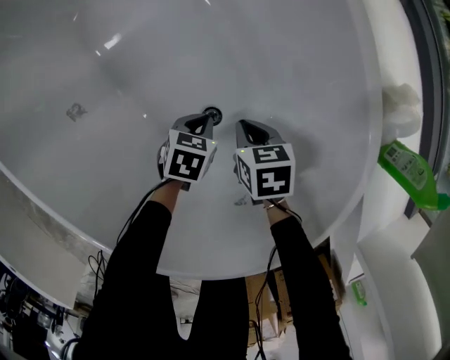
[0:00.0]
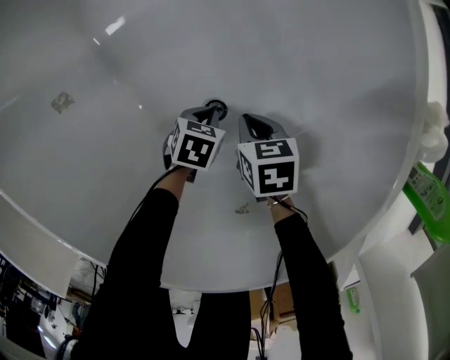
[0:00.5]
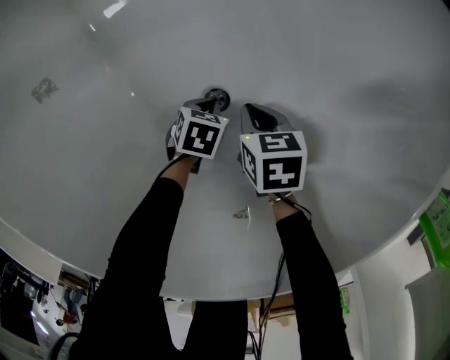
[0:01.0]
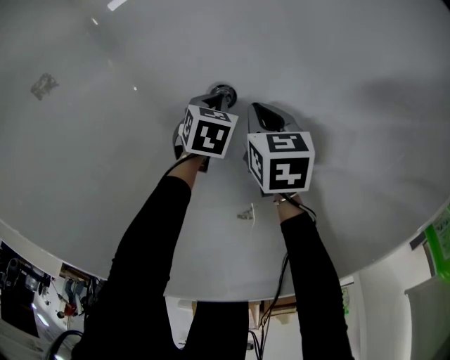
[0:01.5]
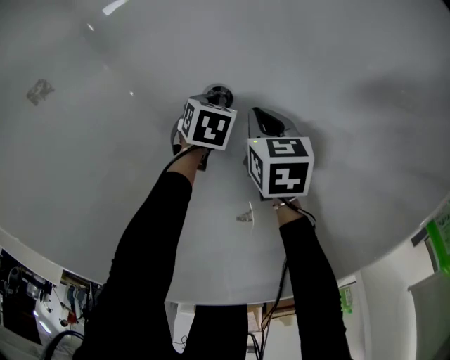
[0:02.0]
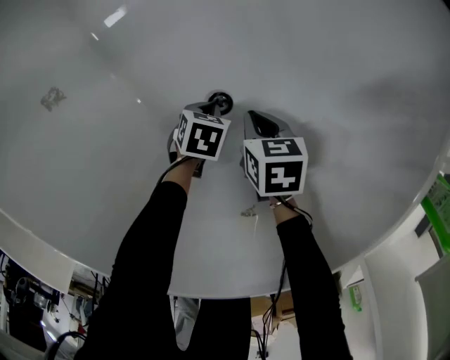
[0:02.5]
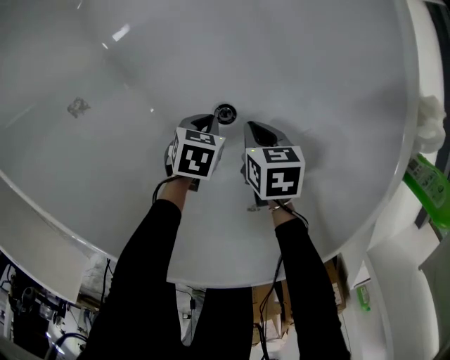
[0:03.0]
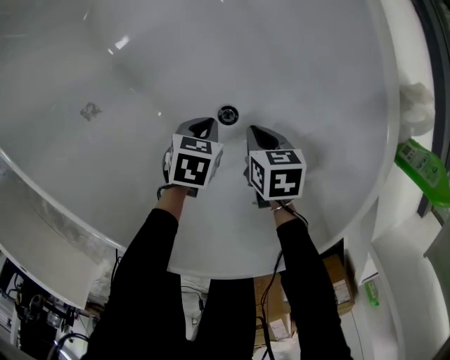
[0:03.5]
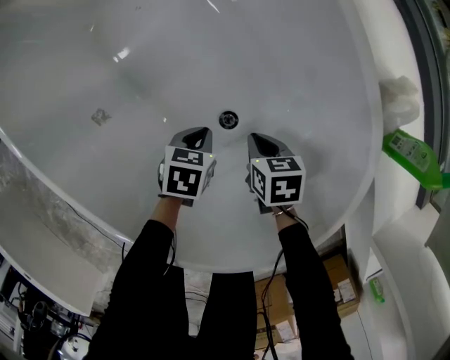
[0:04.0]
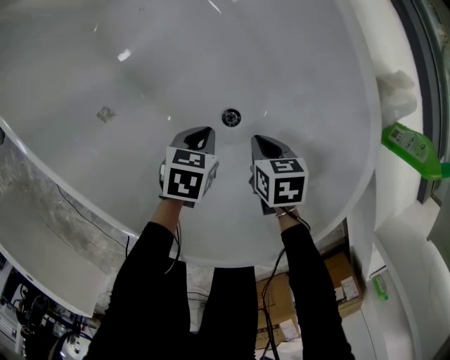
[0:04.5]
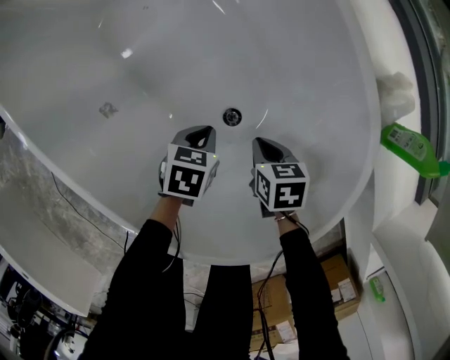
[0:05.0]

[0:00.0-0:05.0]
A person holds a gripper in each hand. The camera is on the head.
0:00.0 to 0:02.5: Both grippers move downward, about 10 cm.
0:02.5 to 0:05.0: The right gripper moves upward, roughly 15 cm, while the left gripper goes roughly 20 cm upward.

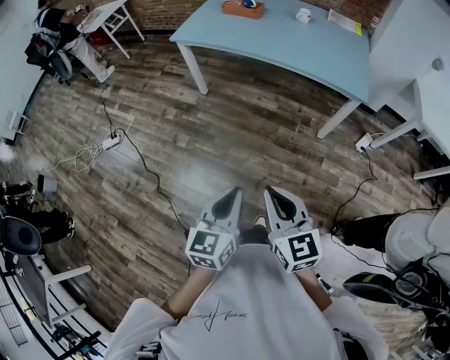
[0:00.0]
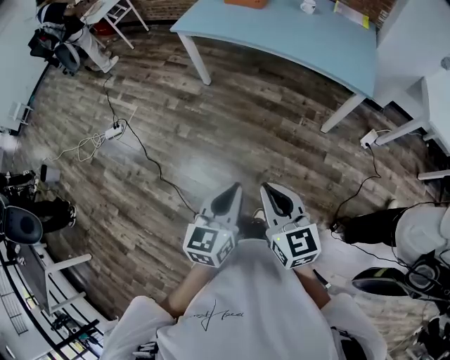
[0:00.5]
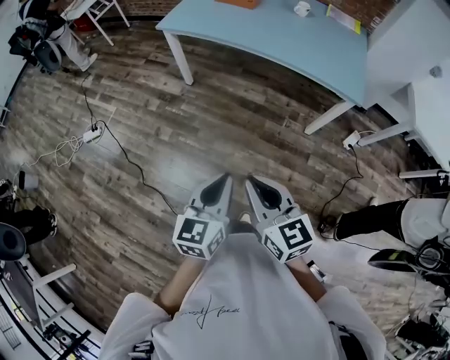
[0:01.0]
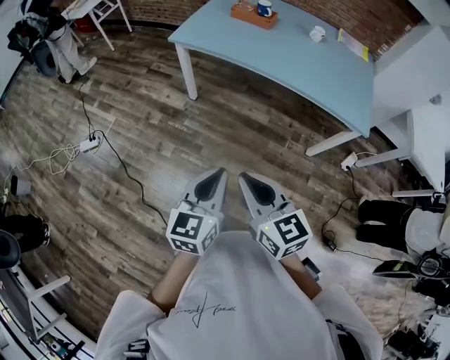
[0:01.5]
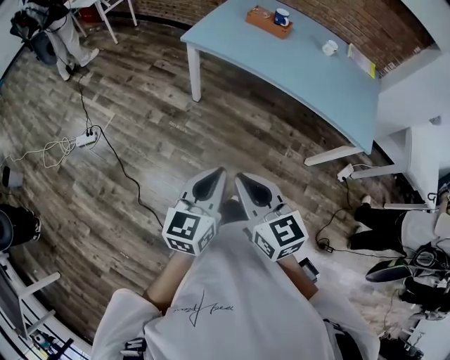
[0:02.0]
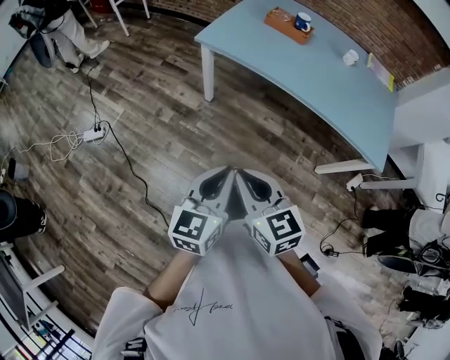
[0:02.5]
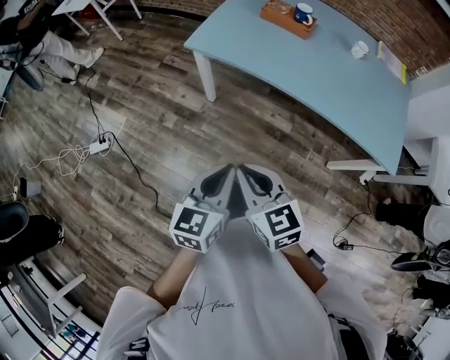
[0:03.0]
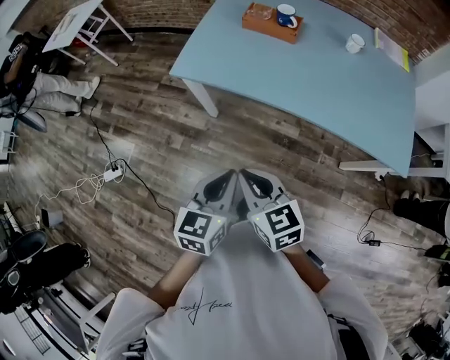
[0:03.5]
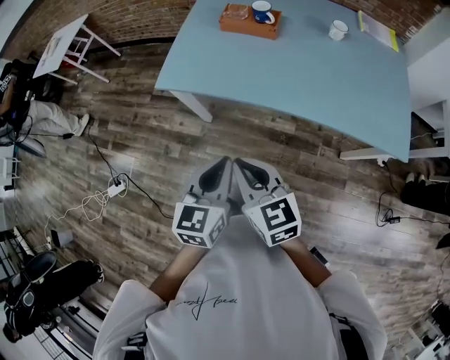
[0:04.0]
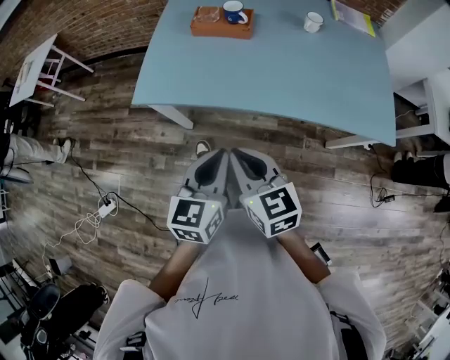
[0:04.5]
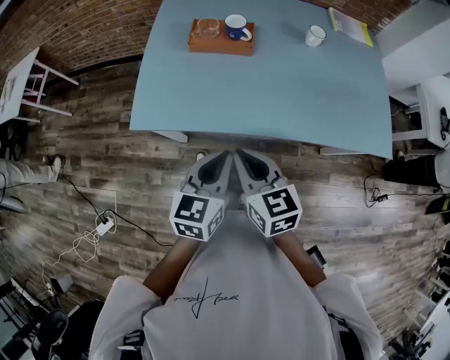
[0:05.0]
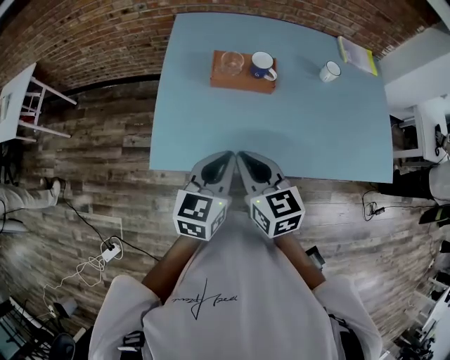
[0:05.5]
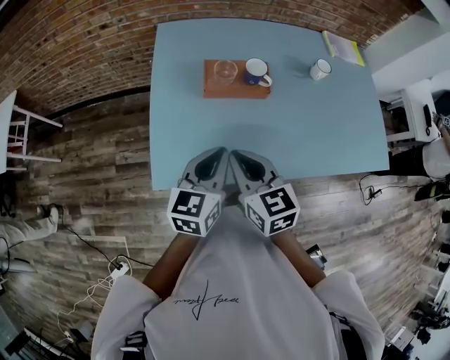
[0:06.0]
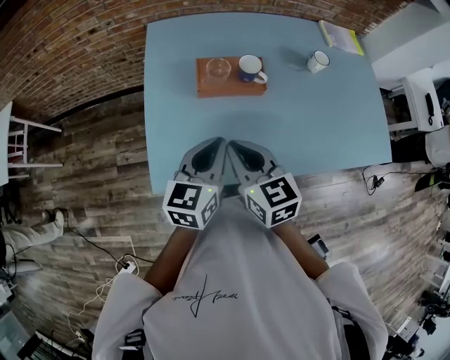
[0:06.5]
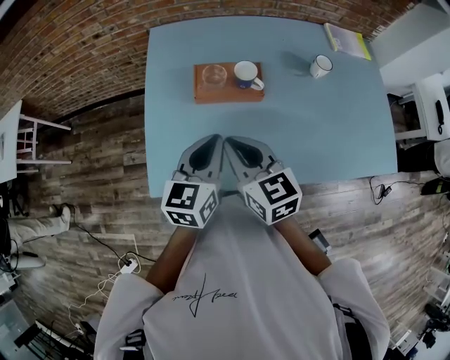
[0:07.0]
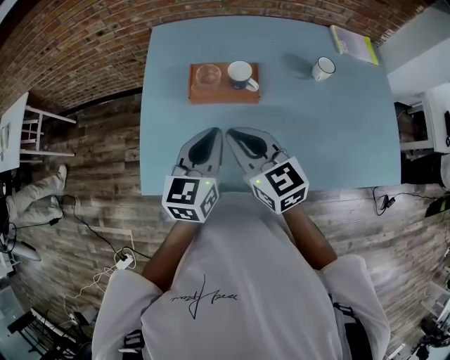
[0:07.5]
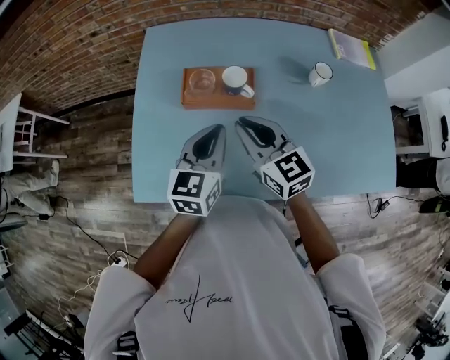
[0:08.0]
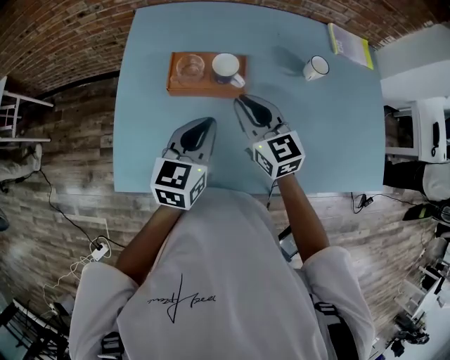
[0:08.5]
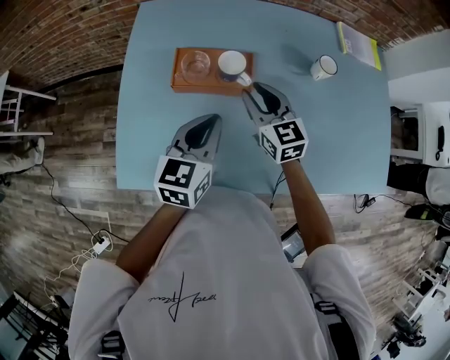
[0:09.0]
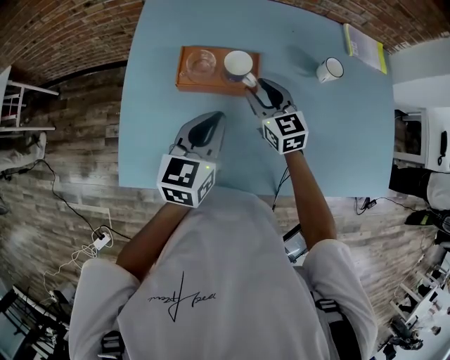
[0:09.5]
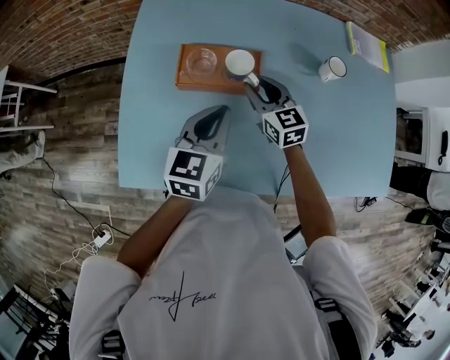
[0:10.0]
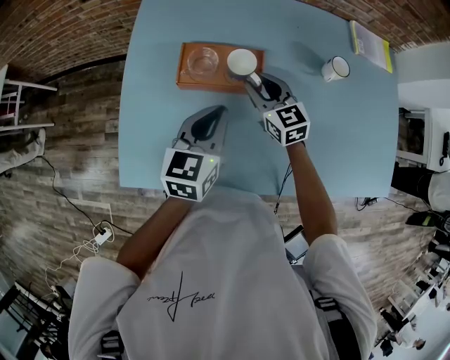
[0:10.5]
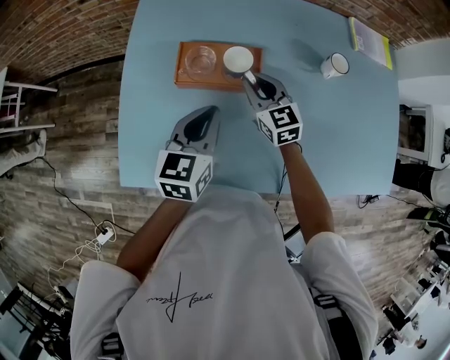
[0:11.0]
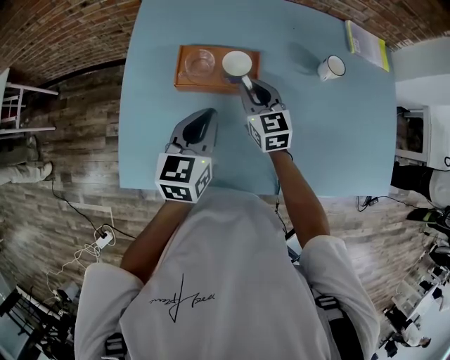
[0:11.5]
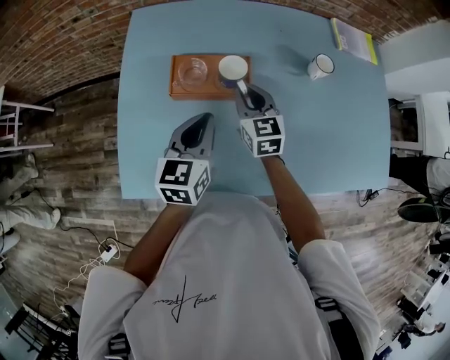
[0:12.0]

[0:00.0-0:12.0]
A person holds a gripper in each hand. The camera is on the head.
0:00.0 to 0:02.0: The two grippers go about 25 cm forward and to the left.
0:02.0 to 0:04.0: Both grippers move forward, roughly 30 cm.
0:04.0 to 0:06.0: The right gripper ends up roughly 35 cm from where it was, and turns by about 20 degrees. Meanwhile the left gripper changes place by some 35 cm, and changes its angle by some 20 degrees.
0:06.0 to 0:08.0: The two grippers go roughly 15 cm forward and to the right.
0:08.0 to 0:10.0: The right gripper is displaced forward and downward by some 15 cm, and opens its fingers.
0:10.0 to 0:12.0: The grippers move only a little.

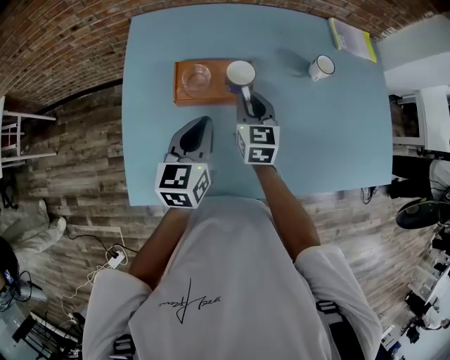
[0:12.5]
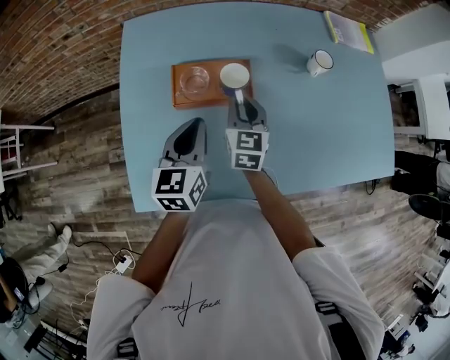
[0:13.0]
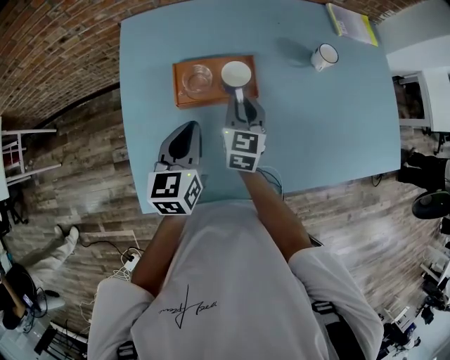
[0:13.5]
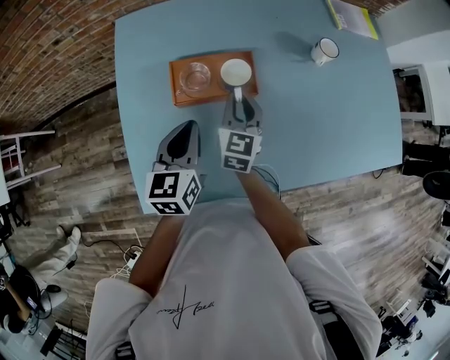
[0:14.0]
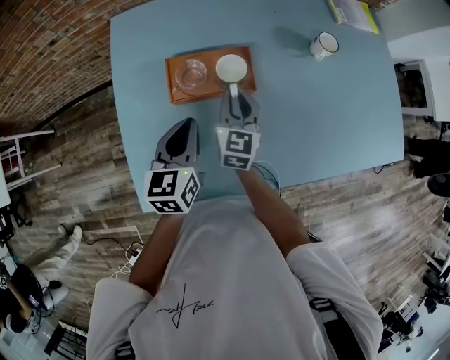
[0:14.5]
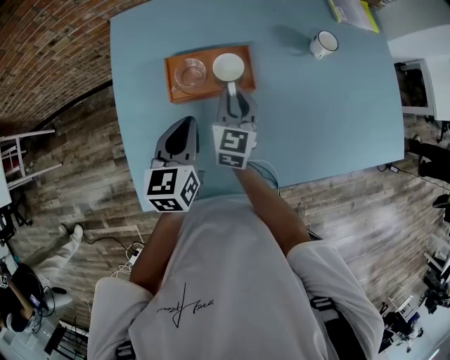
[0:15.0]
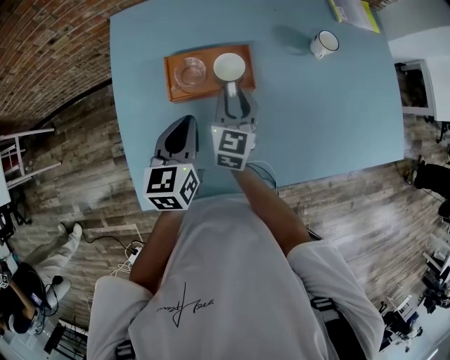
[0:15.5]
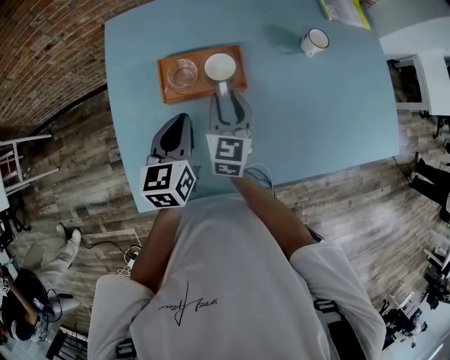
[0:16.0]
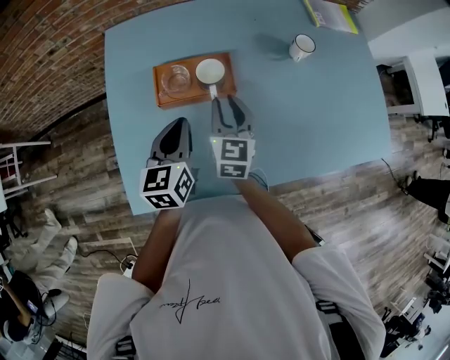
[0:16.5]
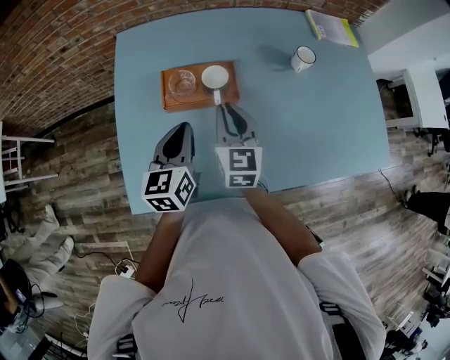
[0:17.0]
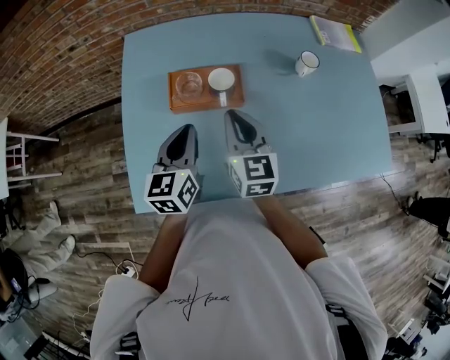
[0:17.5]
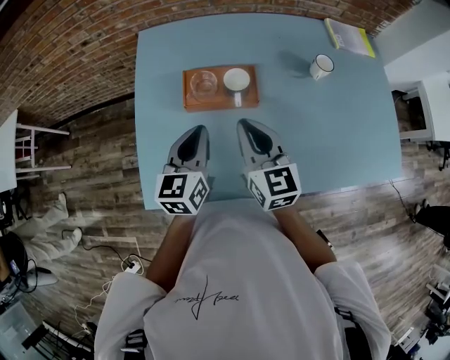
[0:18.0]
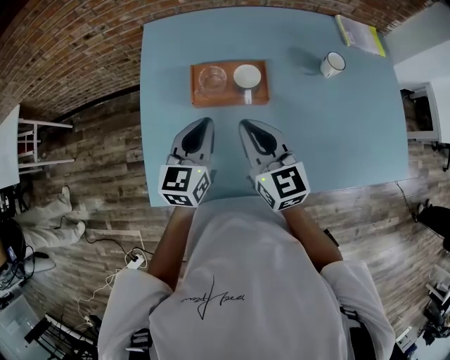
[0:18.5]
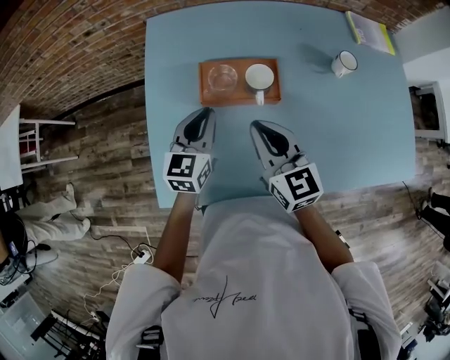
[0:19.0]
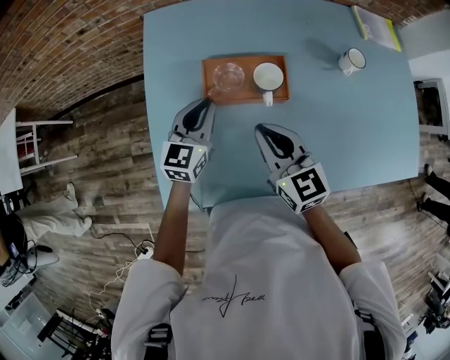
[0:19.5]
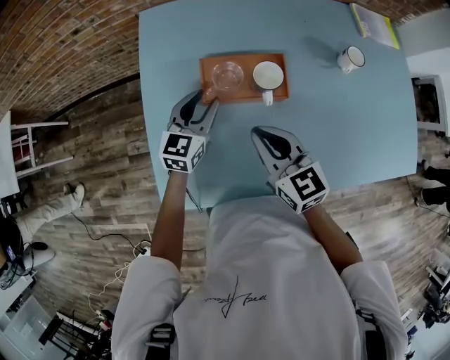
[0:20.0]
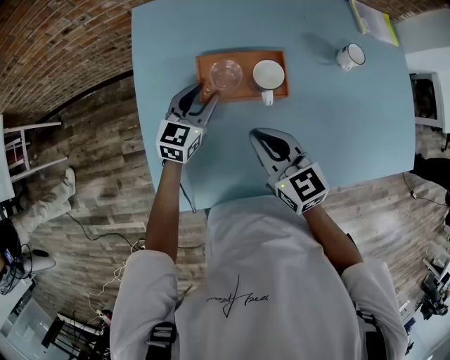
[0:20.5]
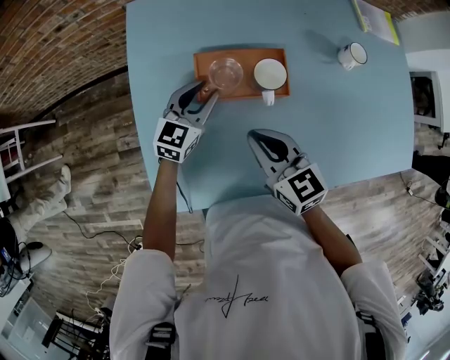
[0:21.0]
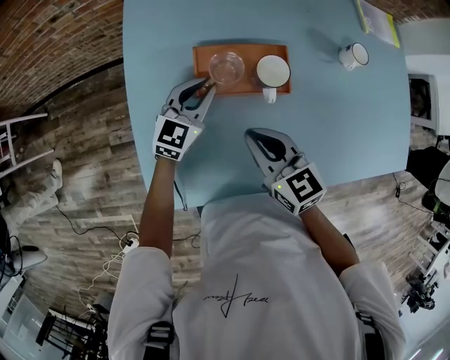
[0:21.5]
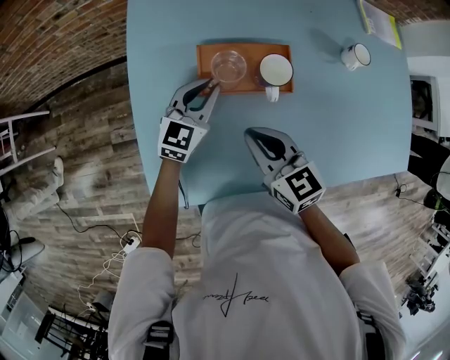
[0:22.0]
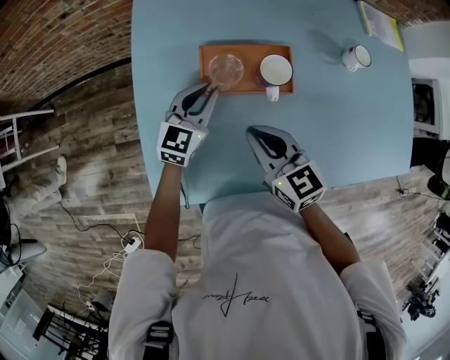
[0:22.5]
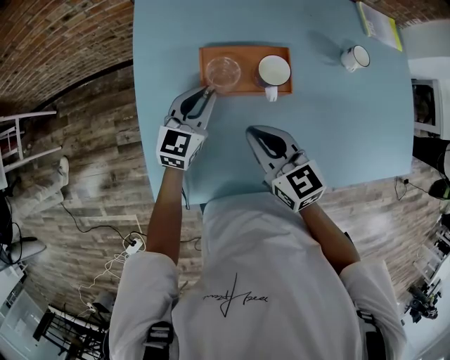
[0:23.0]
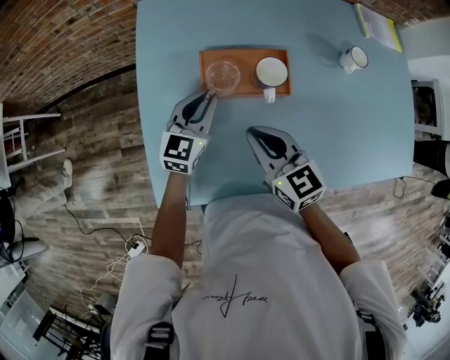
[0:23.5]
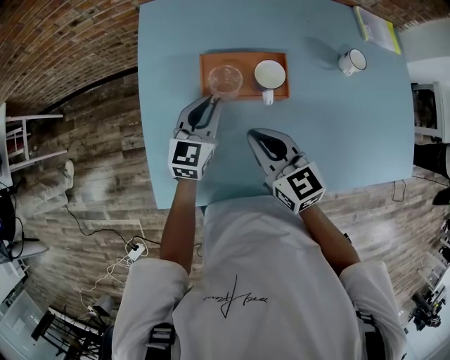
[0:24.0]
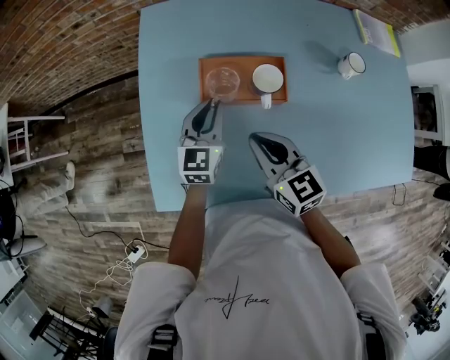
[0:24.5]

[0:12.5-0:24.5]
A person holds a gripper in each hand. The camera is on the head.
0:12.5 to 0:16.5: The grippers make only small movements.
0:16.5 to 0:18.5: The right gripper goes approximately 10 cm upward and backward, swivels about 30 degrees, and closes.
0:18.5 to 0:20.5: The right gripper goes roughly 5 cm downward. Meanwhile the left gripper moves downward and forward, about 15 cm, and opens its fingers.
0:20.5 to 0:22.5: The left gripper closes its fingers.
0:22.5 to 0:24.5: The grippers stay close to where they were, moving slightly.
